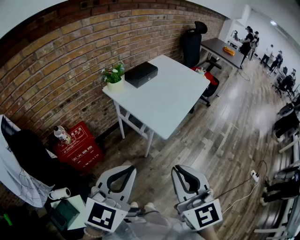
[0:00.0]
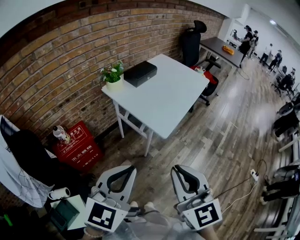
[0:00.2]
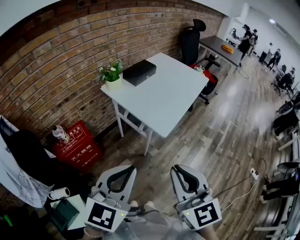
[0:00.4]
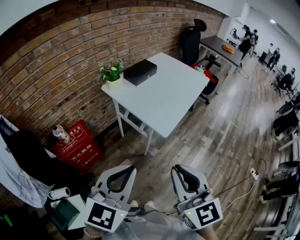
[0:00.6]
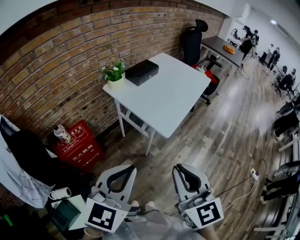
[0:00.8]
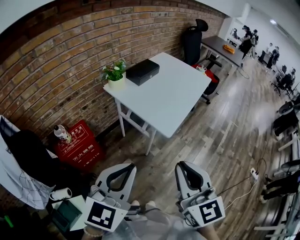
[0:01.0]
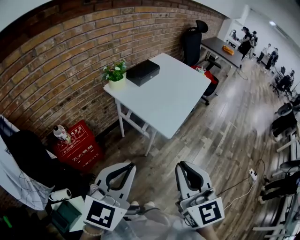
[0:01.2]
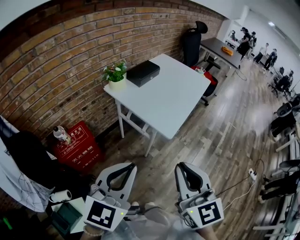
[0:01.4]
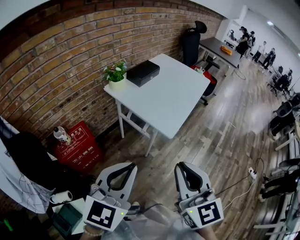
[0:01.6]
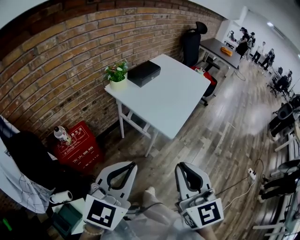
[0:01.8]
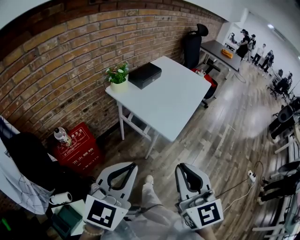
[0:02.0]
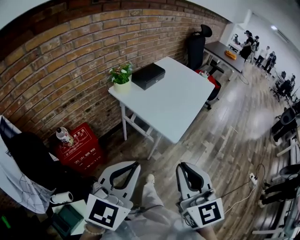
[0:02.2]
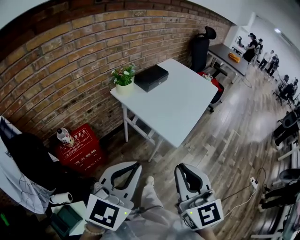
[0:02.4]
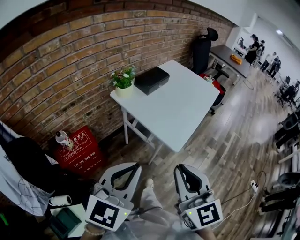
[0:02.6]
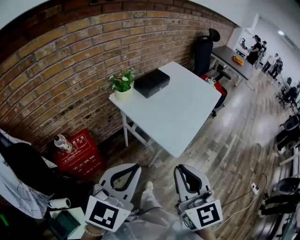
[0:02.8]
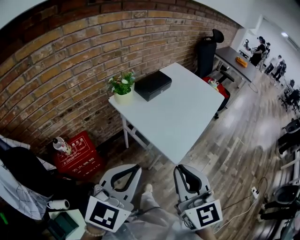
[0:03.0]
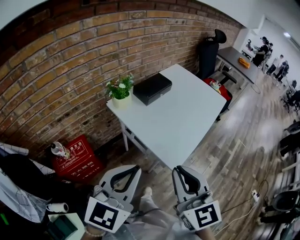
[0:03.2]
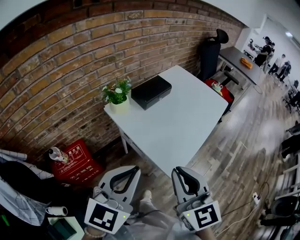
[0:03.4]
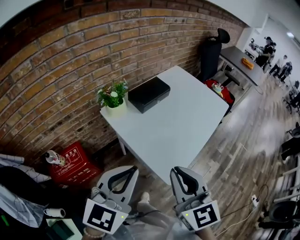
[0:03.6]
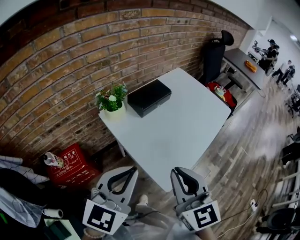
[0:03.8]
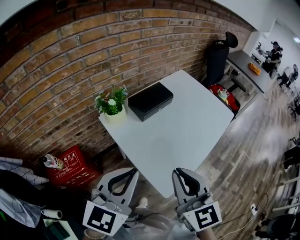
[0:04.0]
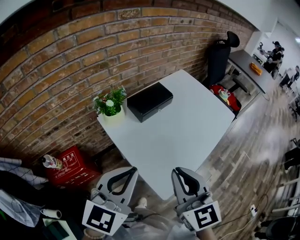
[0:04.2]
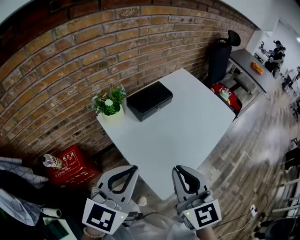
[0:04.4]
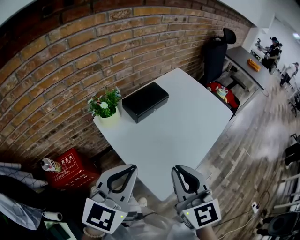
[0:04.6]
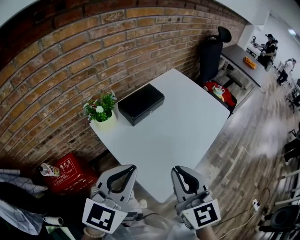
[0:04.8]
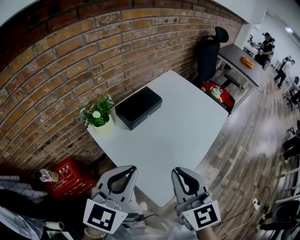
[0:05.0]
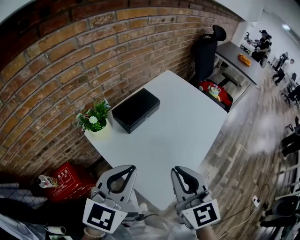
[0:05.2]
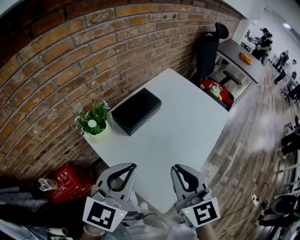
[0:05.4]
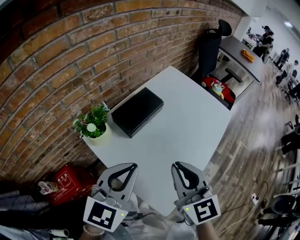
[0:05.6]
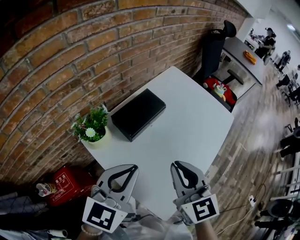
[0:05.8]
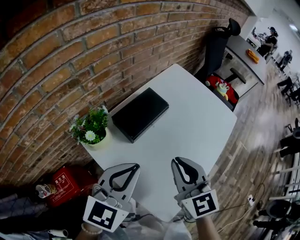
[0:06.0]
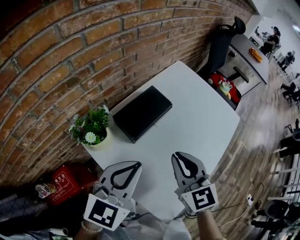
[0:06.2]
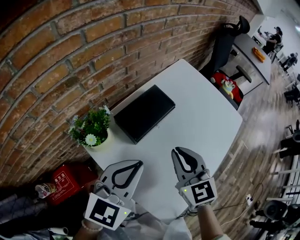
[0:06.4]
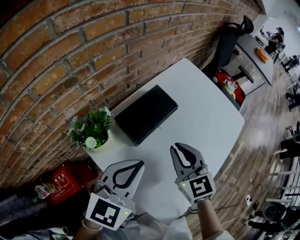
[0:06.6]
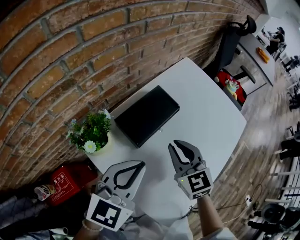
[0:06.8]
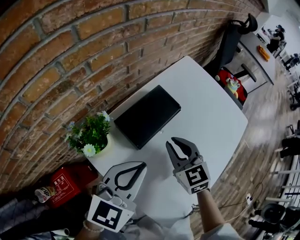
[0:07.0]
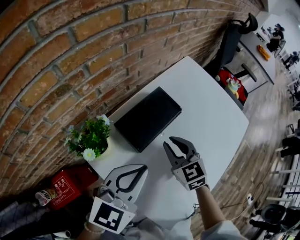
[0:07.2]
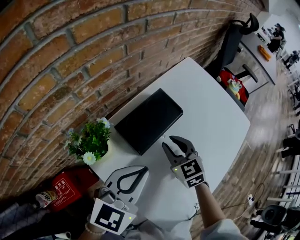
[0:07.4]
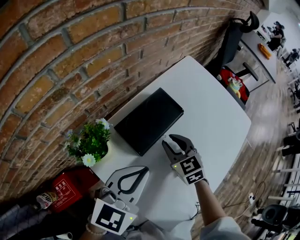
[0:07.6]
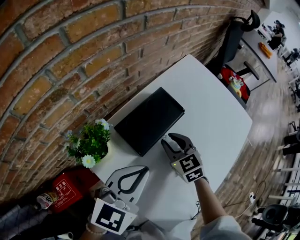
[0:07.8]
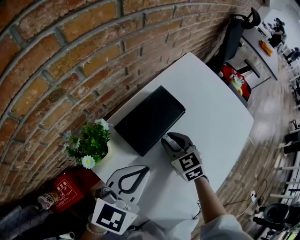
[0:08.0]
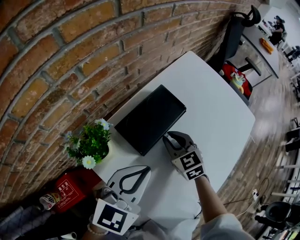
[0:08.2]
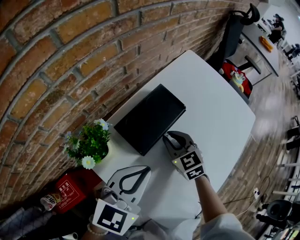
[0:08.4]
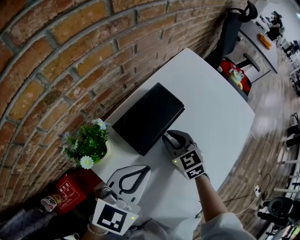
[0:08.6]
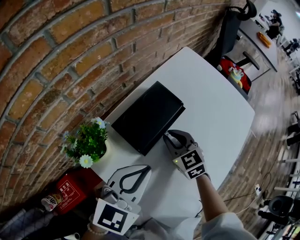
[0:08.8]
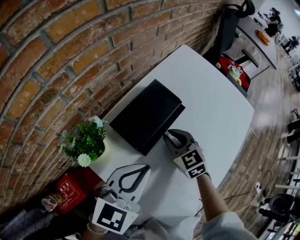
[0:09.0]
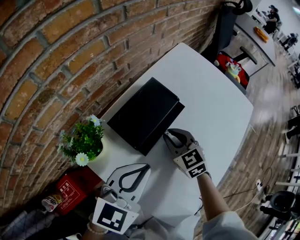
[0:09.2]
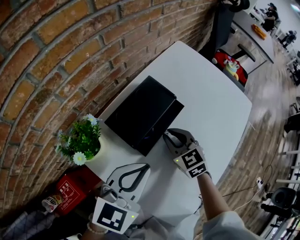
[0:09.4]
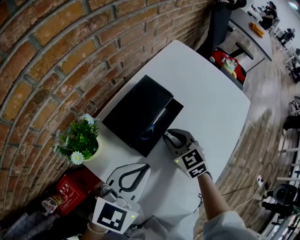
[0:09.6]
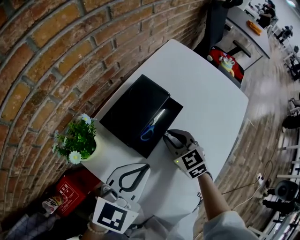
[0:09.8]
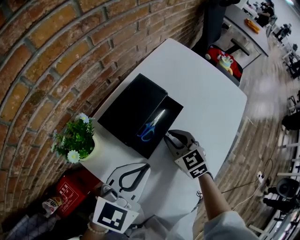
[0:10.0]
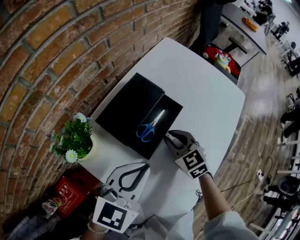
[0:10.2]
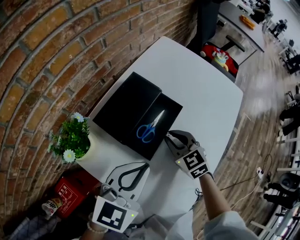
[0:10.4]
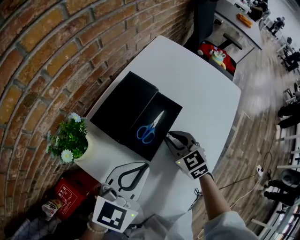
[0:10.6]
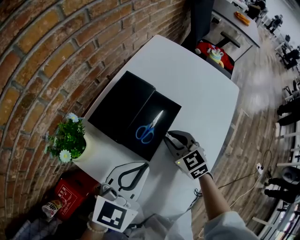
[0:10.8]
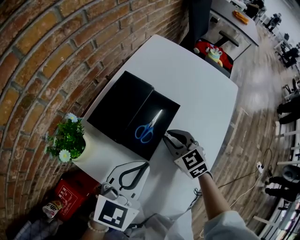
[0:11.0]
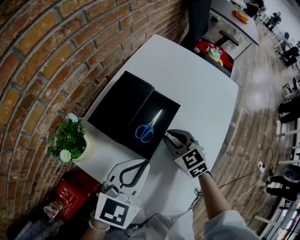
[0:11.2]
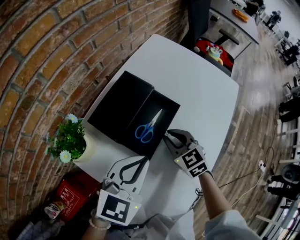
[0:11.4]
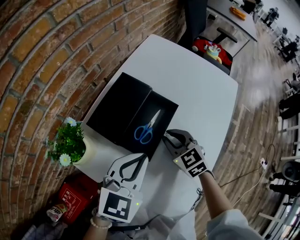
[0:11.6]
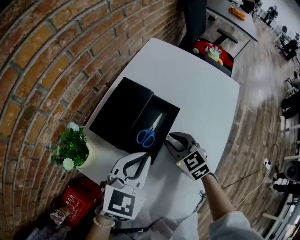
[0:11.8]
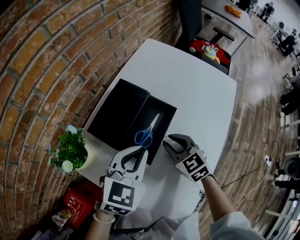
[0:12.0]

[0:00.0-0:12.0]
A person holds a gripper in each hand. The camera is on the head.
0:00.0 to 0:01.6: The left gripper is displaced to the left by about 5 cm.
0:01.6 to 0:03.0: The grippers both shift forward by approximately 15 cm.
0:03.0 to 0:04.4: Both grippers travel together forward, approximately 20 cm.
0:04.4 to 0:06.0: Both grippers travel together forward, some 20 cm.
0:06.0 to 0:07.6: The left gripper moves forward and downward, approximately 10 cm, while the right gripper heads downward and forward, covering roughly 25 cm, and changes its angle by about 20 degrees.
0:07.6 to 0:09.0: The grippers make only small movements.
0:09.0 to 0:10.4: Both grippers travel together to the right, about 5 cm.
0:10.4 to 0:12.0: The left gripper is displaced forward by roughly 5 cm.

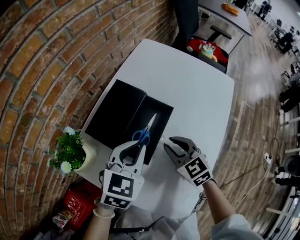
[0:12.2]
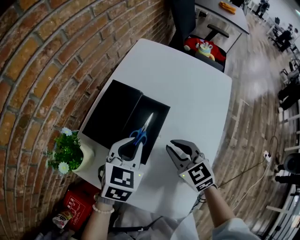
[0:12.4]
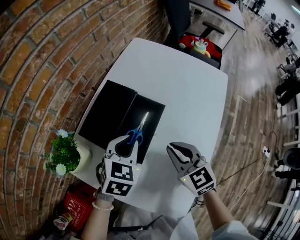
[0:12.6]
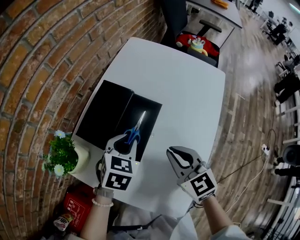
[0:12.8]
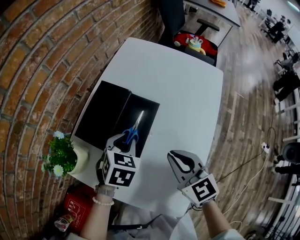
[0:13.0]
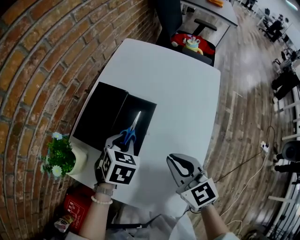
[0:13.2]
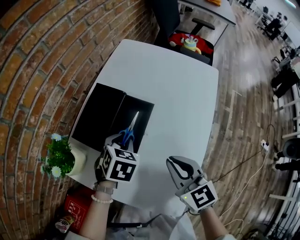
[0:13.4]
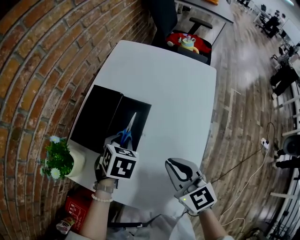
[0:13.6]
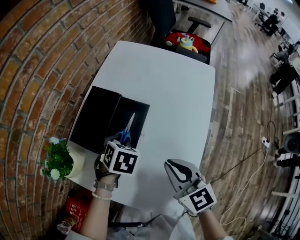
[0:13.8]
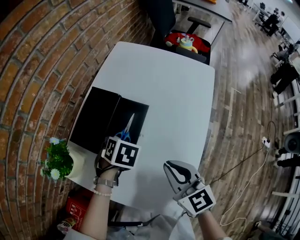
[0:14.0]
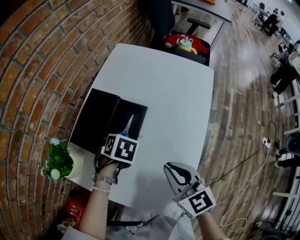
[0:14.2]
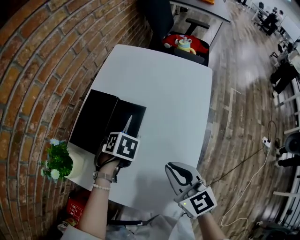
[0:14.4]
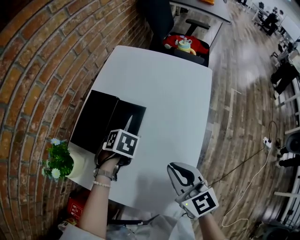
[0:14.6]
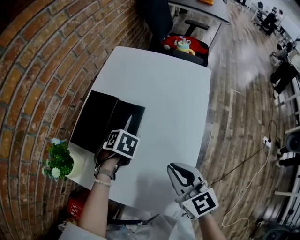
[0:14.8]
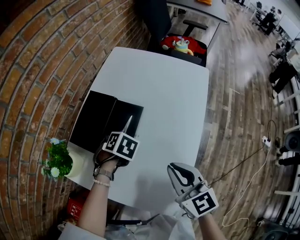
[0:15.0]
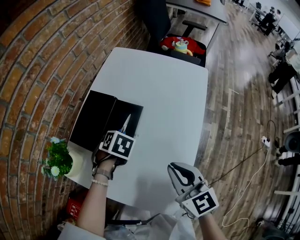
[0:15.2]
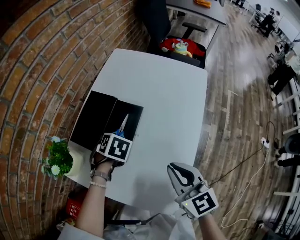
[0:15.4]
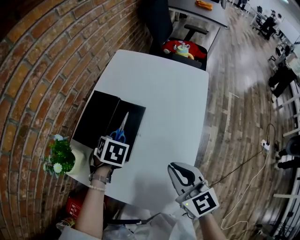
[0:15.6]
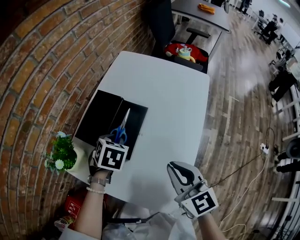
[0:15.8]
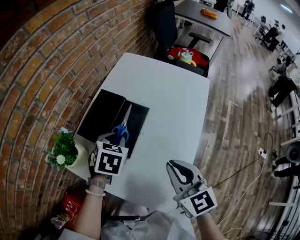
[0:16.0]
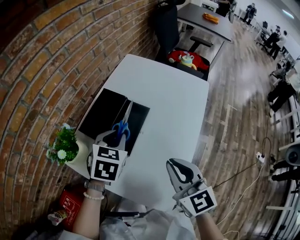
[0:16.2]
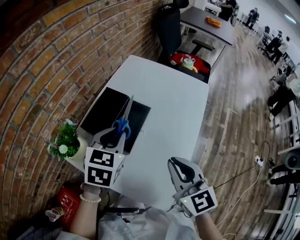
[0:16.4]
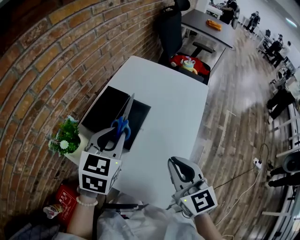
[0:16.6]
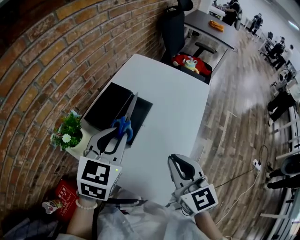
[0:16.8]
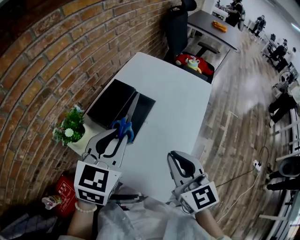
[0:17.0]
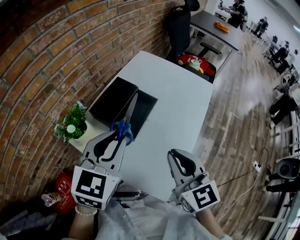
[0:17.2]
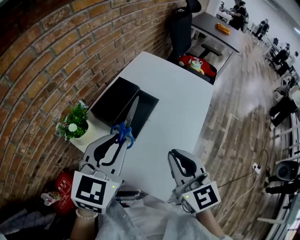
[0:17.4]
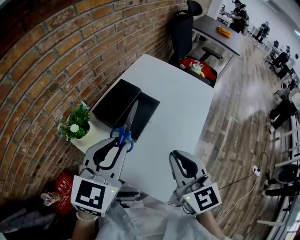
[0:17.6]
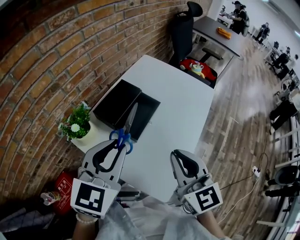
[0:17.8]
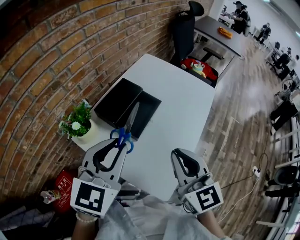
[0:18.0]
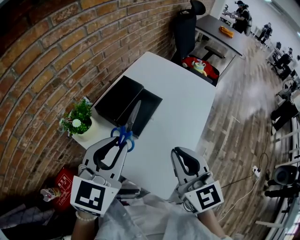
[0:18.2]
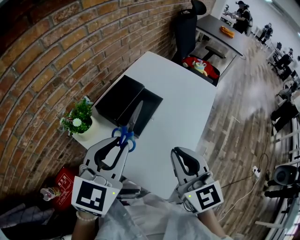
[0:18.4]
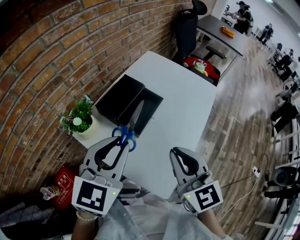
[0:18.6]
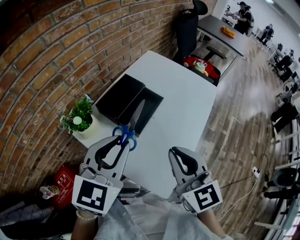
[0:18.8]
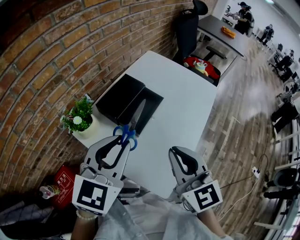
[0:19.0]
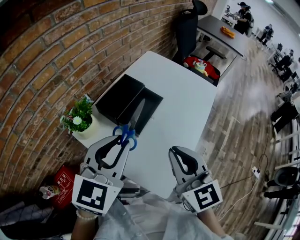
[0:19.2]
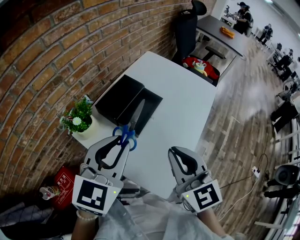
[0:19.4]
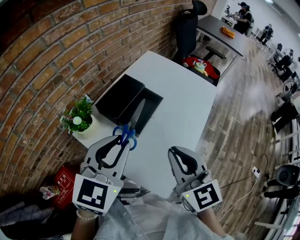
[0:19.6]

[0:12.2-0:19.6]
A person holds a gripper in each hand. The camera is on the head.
0:12.2 to 0:13.6: The left gripper heads downward, covering some 10 cm, and changes its angle by some 30 degrees; the right gripper moves backward and upward, some 10 cm, and changes its angle by about 20 degrees.
0:13.6 to 0:15.2: The right gripper moves roughly 5 cm.
0:15.2 to 0:16.6: The right gripper travels upward by some 10 cm; the left gripper shifts some 20 cm upward, and tilts its fingers approximately 50 degrees upward.
0:16.6 to 0:18.2: The right gripper moves approximately 5 cm, while the left gripper moves backward and upward, approximately 15 cm.
0:18.2 to 0:19.6: The grippers stay close to where they were, moving slightly.

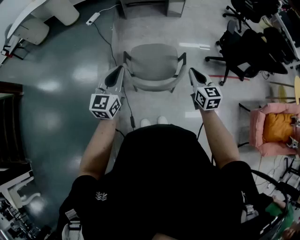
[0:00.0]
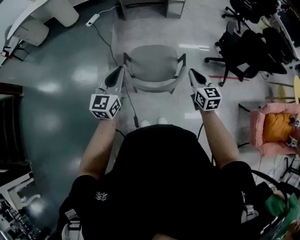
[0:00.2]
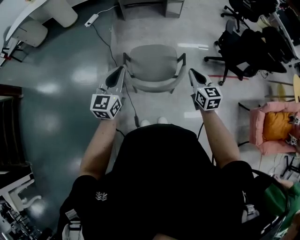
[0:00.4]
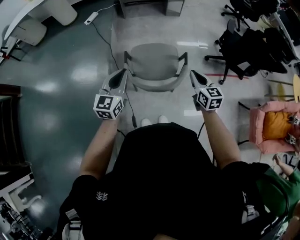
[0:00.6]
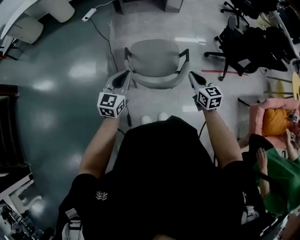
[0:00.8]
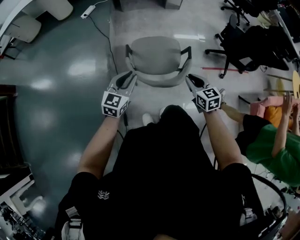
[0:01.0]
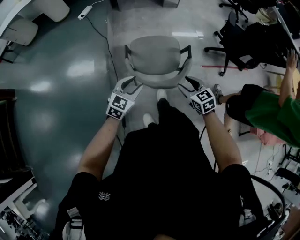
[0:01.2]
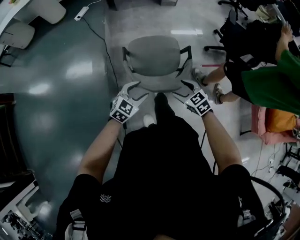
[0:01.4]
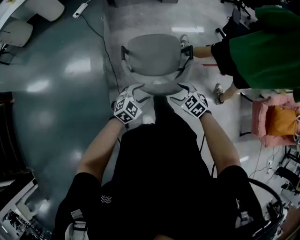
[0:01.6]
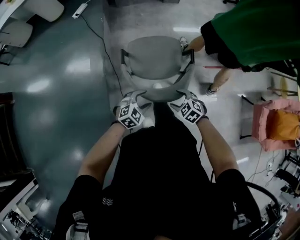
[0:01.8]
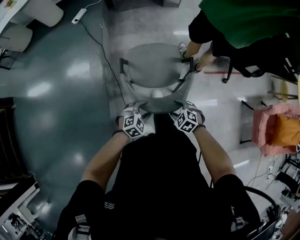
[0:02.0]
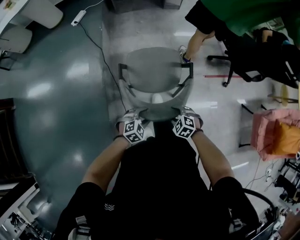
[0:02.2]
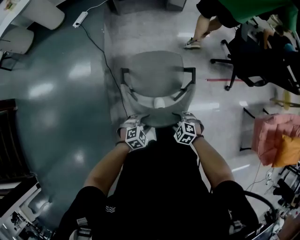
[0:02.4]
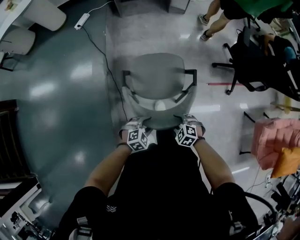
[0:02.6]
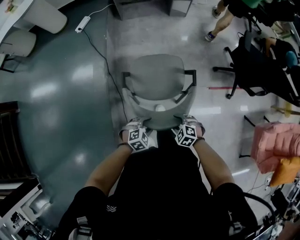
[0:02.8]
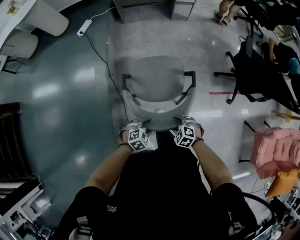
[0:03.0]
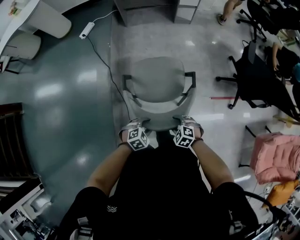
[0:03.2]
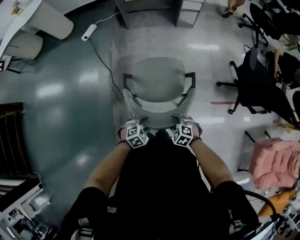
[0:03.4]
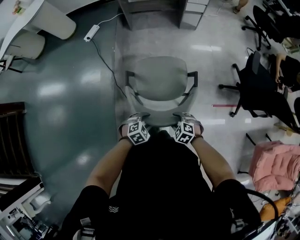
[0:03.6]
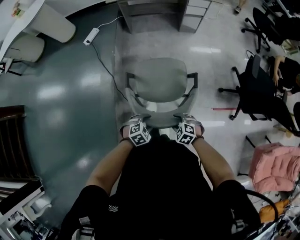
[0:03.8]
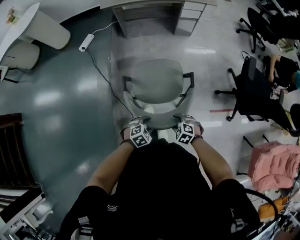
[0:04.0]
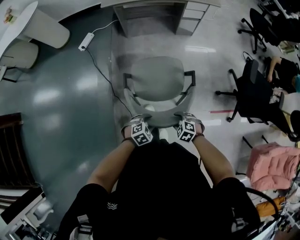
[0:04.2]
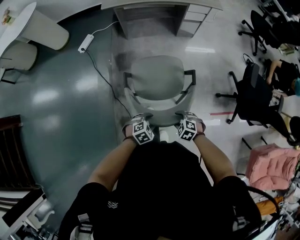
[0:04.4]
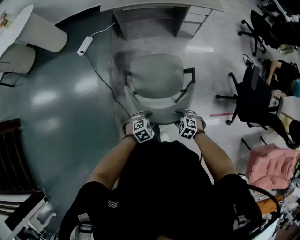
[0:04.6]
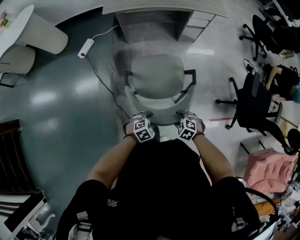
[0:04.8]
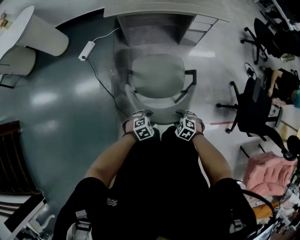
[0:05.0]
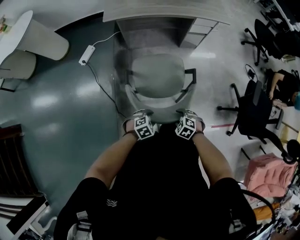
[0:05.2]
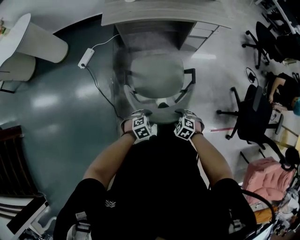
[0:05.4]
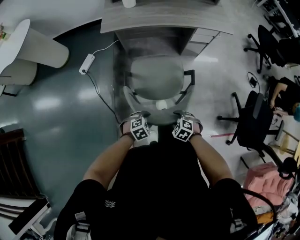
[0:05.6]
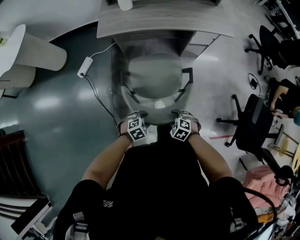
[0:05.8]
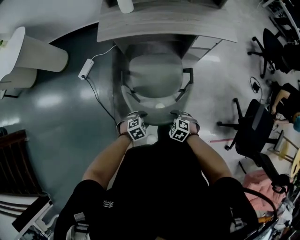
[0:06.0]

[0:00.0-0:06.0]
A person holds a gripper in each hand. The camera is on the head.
0:00.0 to 0:01.6: The right gripper is displaced downward and to the left by approximately 25 cm, points its fingers some 30 degrees further downward, and opens its fingers. The left gripper is displaced downward by some 25 cm, tips its fingers downward by roughly 30 degrees, and opens its fingers.
0:01.6 to 0:03.0: The right gripper moves approximately 15 cm, and swivels some 20 degrees. The left gripper shifts by about 15 cm, and changes its angle by approximately 20 degrees.
0:03.0 to 0:04.4: The right gripper shifts by roughly 30 cm; the left gripper ends up approximately 25 cm from where it was.
0:04.4 to 0:06.0: The left gripper shifts by roughly 35 cm, while the right gripper ends up roughly 35 cm from where it was.
